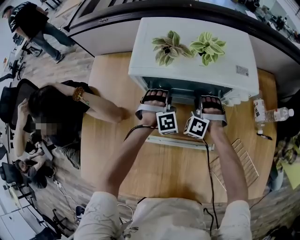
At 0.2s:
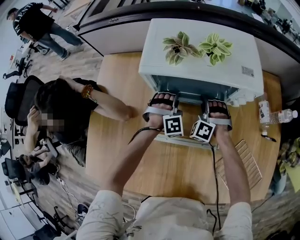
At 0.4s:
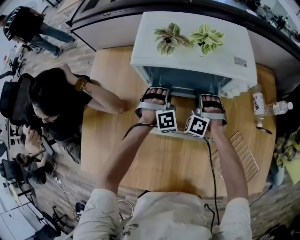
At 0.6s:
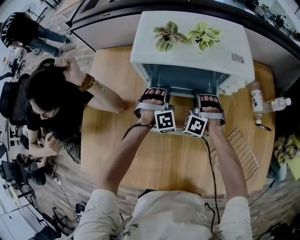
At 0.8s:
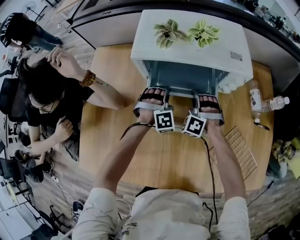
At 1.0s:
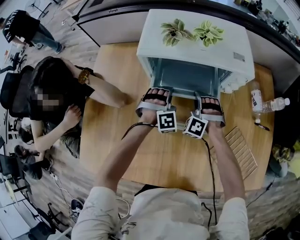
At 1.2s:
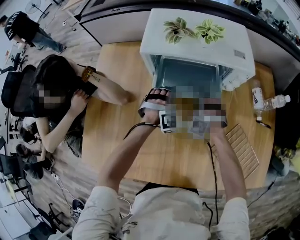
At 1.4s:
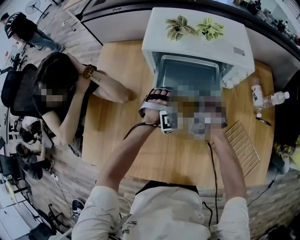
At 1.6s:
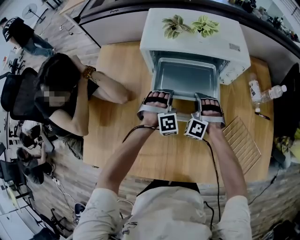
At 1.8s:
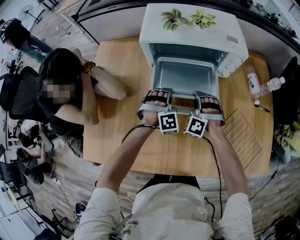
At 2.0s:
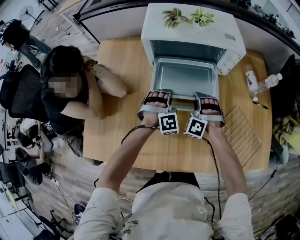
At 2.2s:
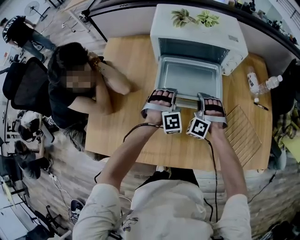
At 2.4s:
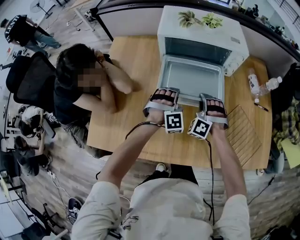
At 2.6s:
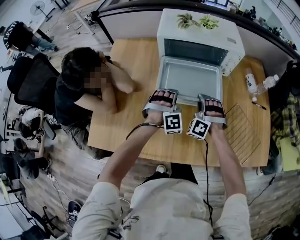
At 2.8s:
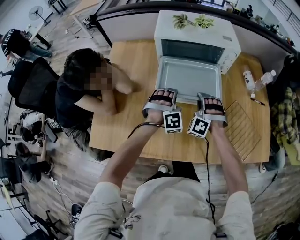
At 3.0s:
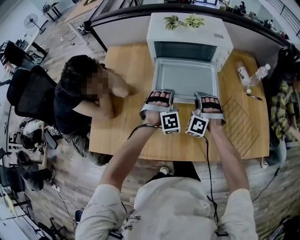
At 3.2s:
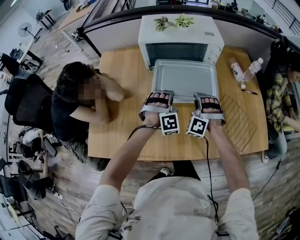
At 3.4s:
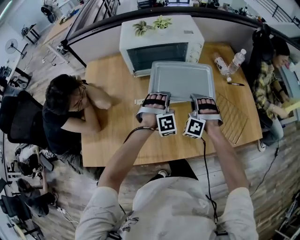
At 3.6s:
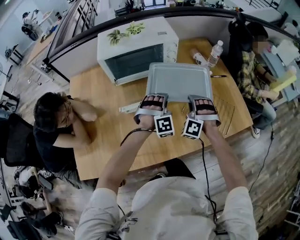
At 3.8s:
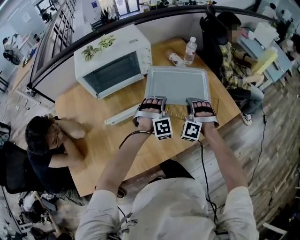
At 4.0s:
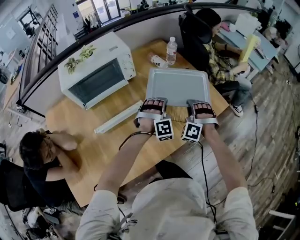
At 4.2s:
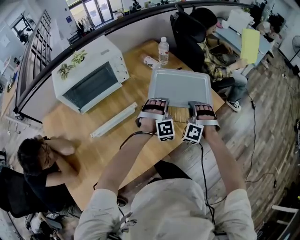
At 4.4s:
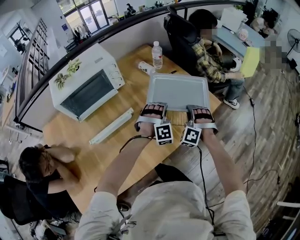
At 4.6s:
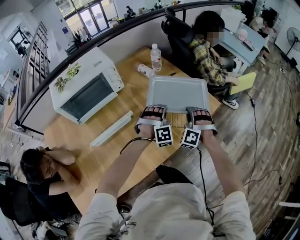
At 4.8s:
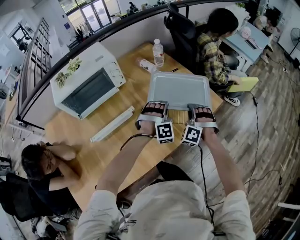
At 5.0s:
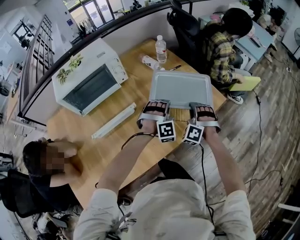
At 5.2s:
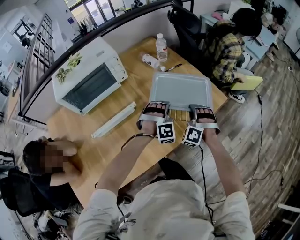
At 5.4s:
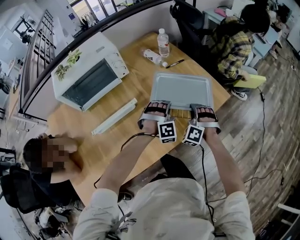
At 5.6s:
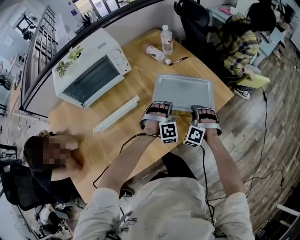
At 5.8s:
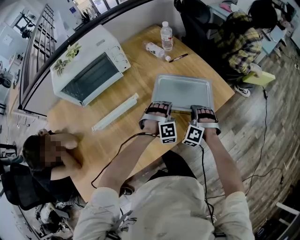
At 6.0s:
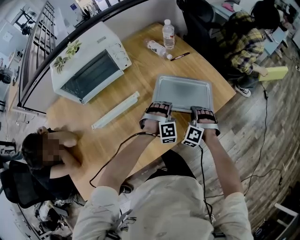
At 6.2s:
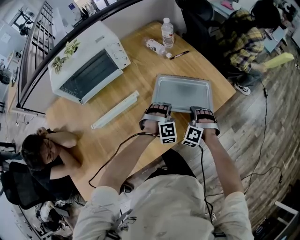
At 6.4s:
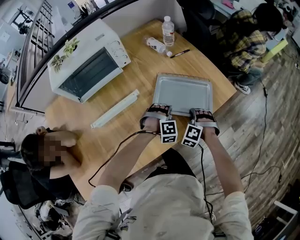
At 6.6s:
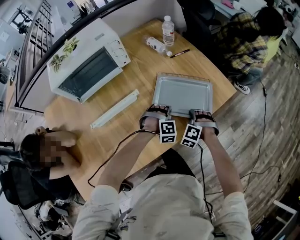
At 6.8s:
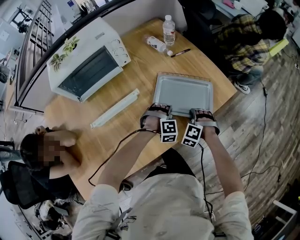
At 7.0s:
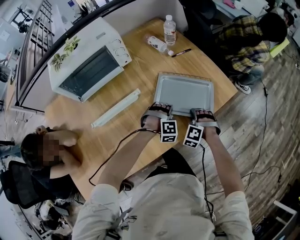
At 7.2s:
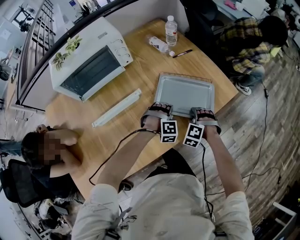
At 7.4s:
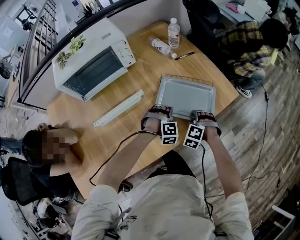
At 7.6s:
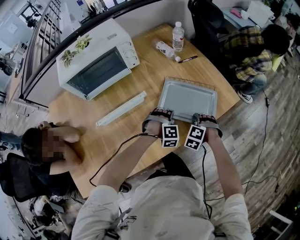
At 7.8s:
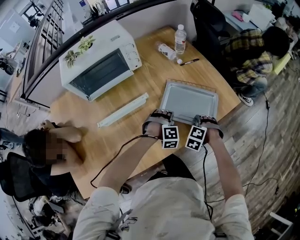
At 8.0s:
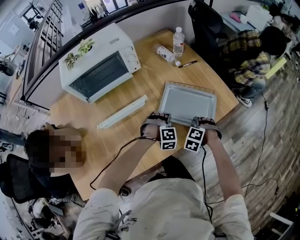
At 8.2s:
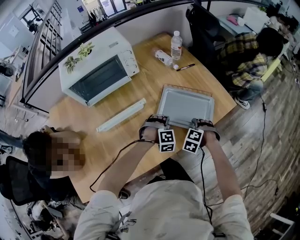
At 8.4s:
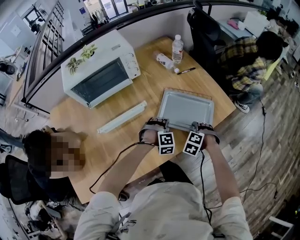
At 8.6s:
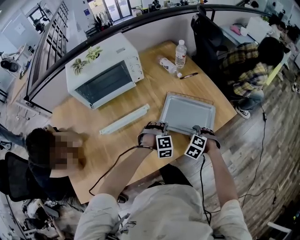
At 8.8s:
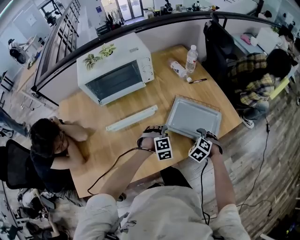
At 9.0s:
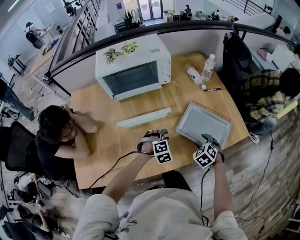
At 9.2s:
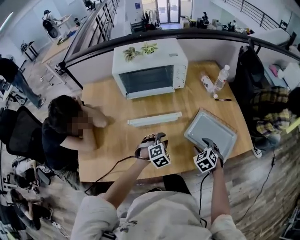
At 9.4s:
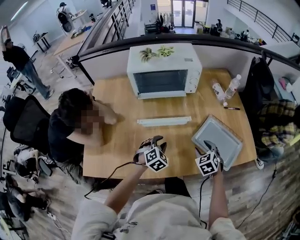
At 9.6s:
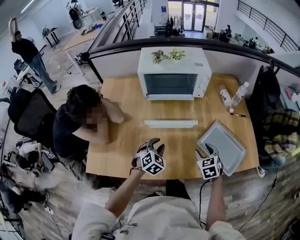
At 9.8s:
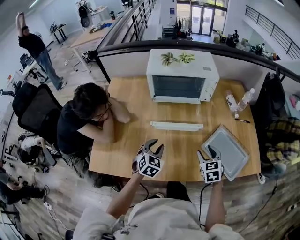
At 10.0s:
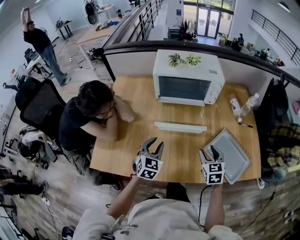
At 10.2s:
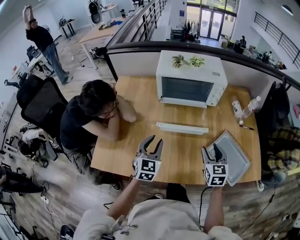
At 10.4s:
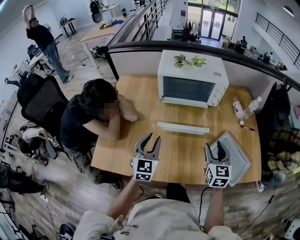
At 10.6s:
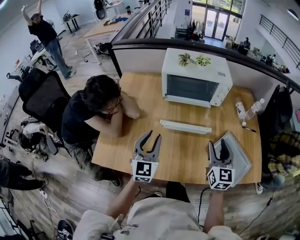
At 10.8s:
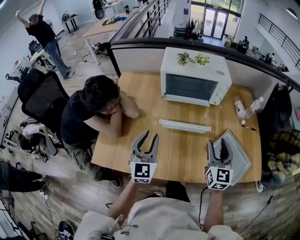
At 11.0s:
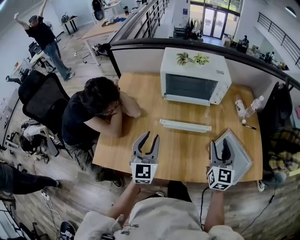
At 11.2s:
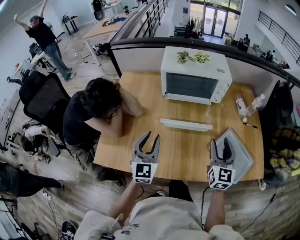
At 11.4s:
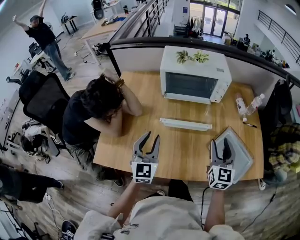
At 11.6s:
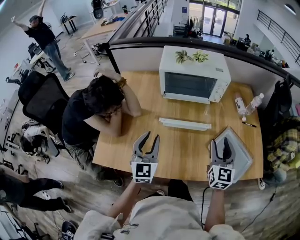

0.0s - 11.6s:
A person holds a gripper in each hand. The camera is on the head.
0.0s - 1.4s: Both grippers move backward, roughly 10 cm.
1.4s - 2.8s: Both grippers move backward and upward, roughly 15 cm.
2.8s - 4.4s: The right gripper changes place by some 40 cm, and rotates roughly 40 degrees. Meanwhile the left gripper shifts by about 40 cm, and turns by about 40 degrees.
4.4s - 5.8s: The grippers both shift downward by roughly 10 cm.
5.8s - 7.2s: The left gripper is displaced downward by approximately 5 cm, while the right gripper ends up roughly 5 cm from where it was, and opens its fingers.
7.2s - 8.8s: The left gripper goes some 10 cm to the left, and turns by some 20 degrees. Meanwhile the right gripper rotates roughly 20 degrees.
8.8s - 10.2s: The left gripper changes place by approximately 35 cm, and rolls counterclockwise, seen from behind, by some 70 degrees, while the right gripper changes place by approximately 25 cm, and tips its fingers upward by some 40 degrees.
10.2s - 11.6s: Both grippers travel together upward, roughly 5 cm.

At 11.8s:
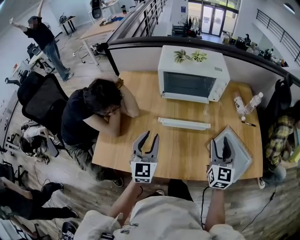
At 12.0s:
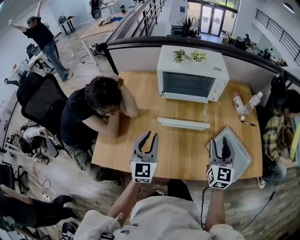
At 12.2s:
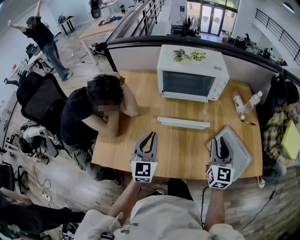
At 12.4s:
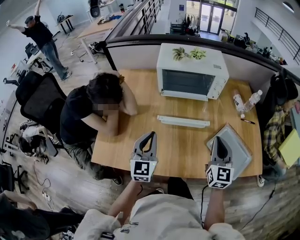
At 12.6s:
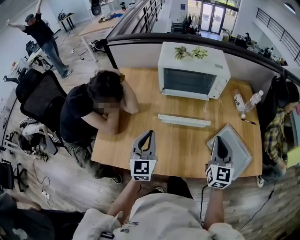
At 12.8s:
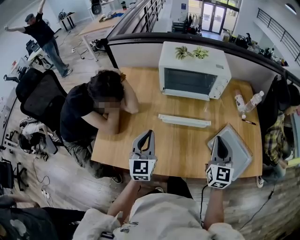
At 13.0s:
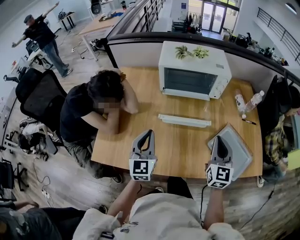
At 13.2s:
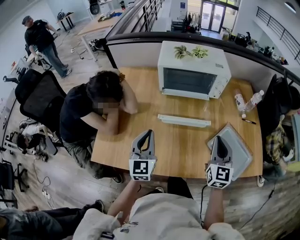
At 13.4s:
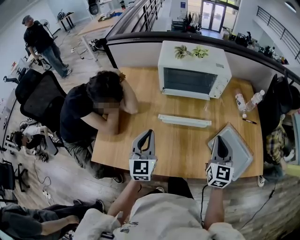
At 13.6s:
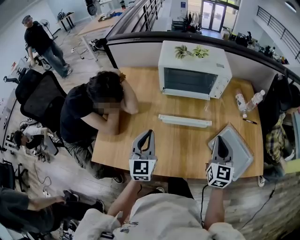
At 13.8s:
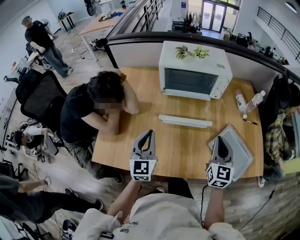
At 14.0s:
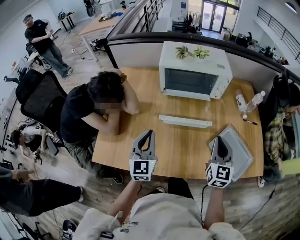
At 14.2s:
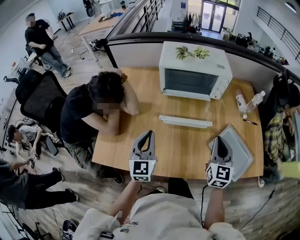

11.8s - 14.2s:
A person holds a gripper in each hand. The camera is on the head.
11.8s - 13.0s: The right gripper closes up. The left gripper closes up.
13.0s - 14.2s: Both grippers stay about where they are.

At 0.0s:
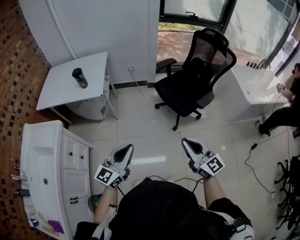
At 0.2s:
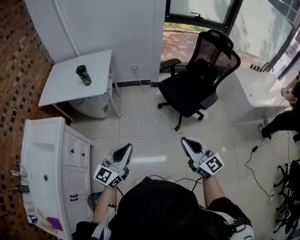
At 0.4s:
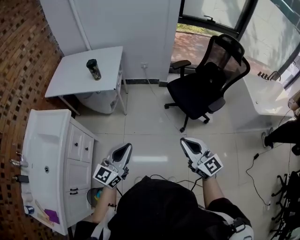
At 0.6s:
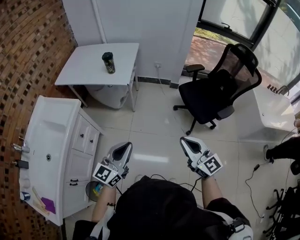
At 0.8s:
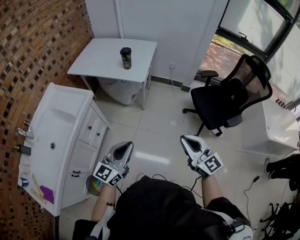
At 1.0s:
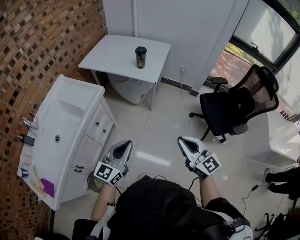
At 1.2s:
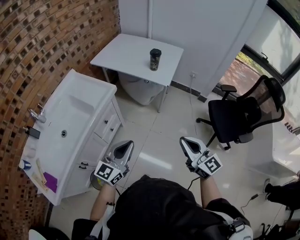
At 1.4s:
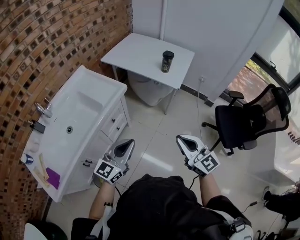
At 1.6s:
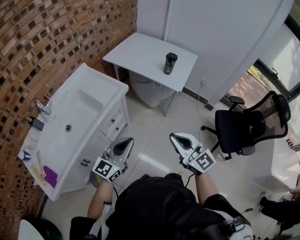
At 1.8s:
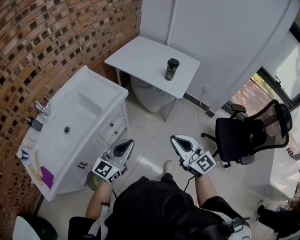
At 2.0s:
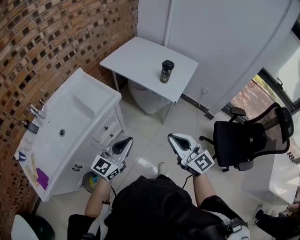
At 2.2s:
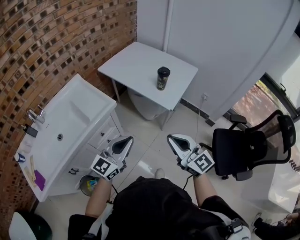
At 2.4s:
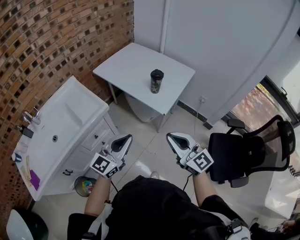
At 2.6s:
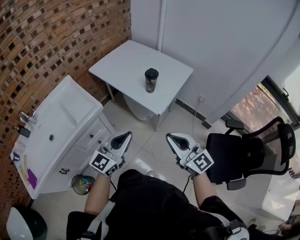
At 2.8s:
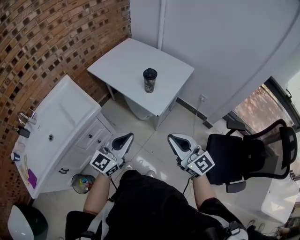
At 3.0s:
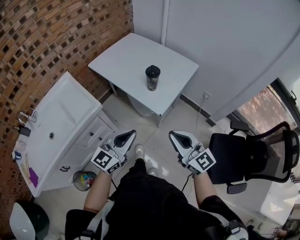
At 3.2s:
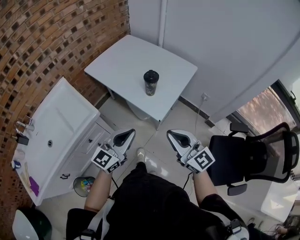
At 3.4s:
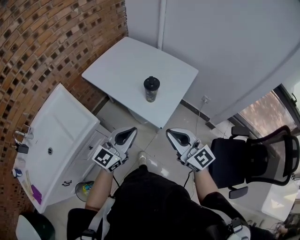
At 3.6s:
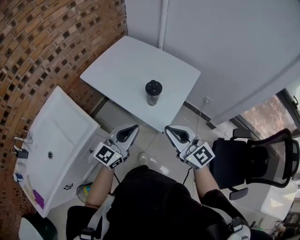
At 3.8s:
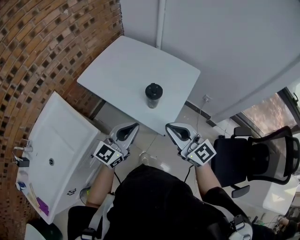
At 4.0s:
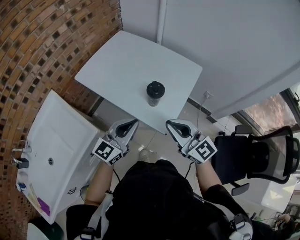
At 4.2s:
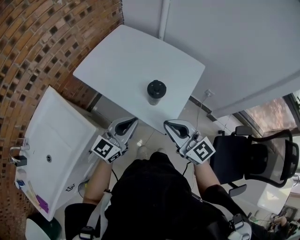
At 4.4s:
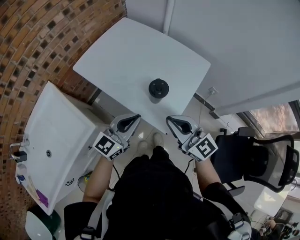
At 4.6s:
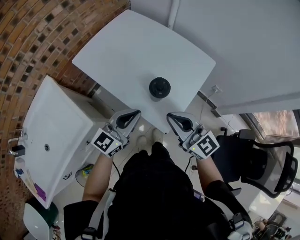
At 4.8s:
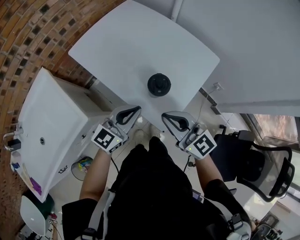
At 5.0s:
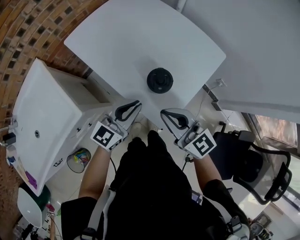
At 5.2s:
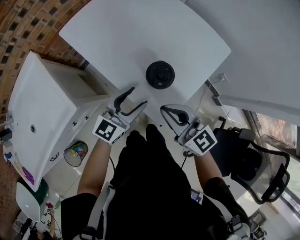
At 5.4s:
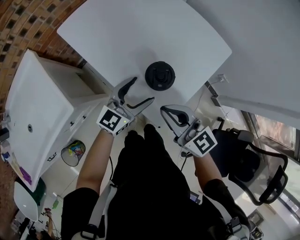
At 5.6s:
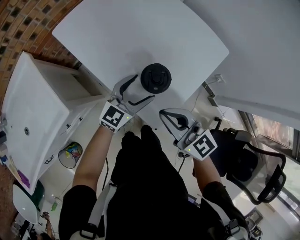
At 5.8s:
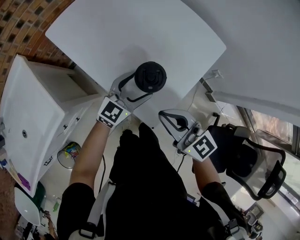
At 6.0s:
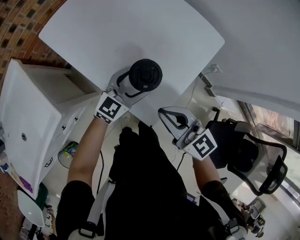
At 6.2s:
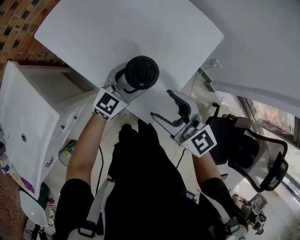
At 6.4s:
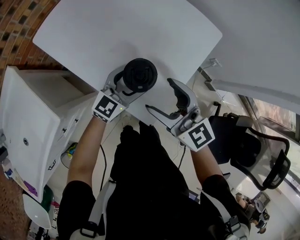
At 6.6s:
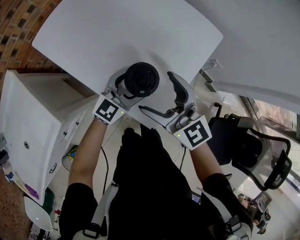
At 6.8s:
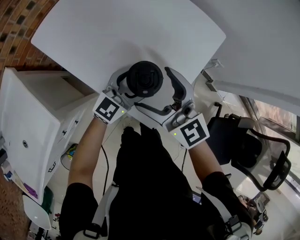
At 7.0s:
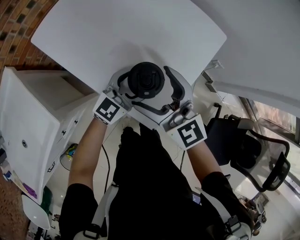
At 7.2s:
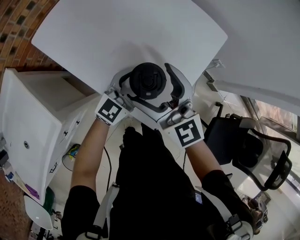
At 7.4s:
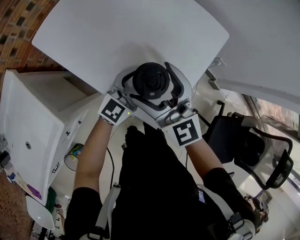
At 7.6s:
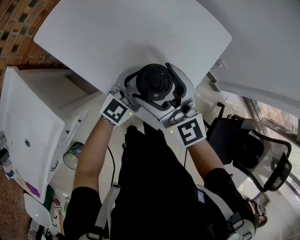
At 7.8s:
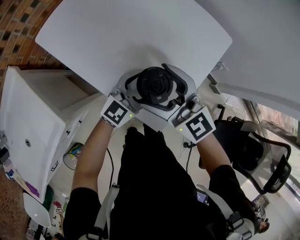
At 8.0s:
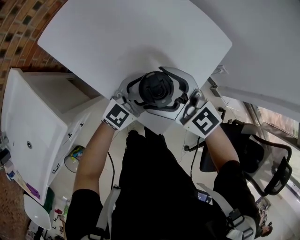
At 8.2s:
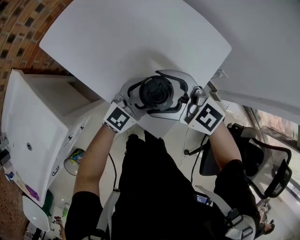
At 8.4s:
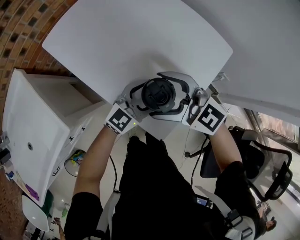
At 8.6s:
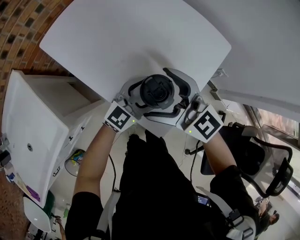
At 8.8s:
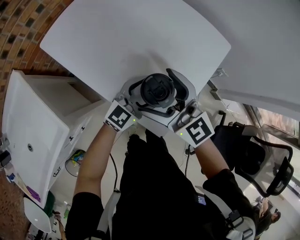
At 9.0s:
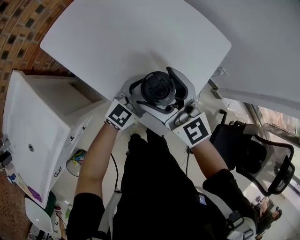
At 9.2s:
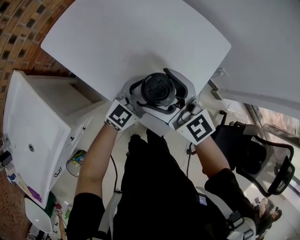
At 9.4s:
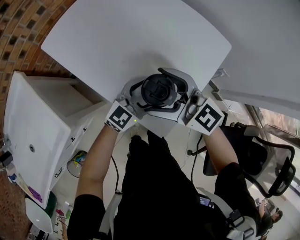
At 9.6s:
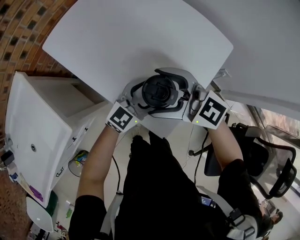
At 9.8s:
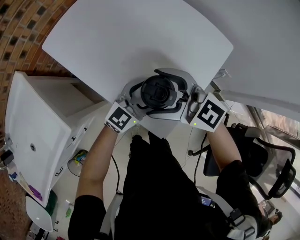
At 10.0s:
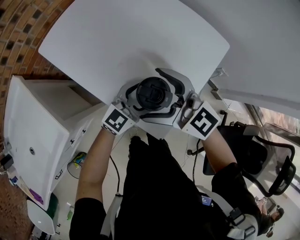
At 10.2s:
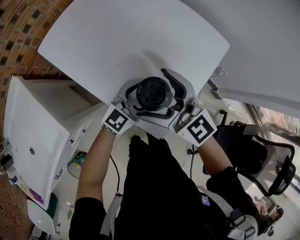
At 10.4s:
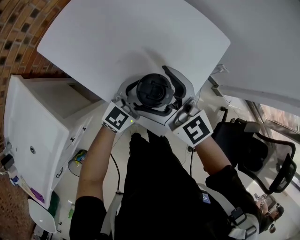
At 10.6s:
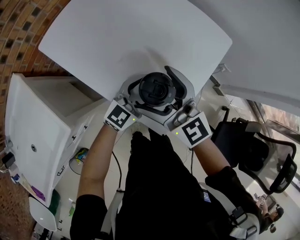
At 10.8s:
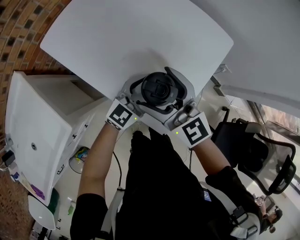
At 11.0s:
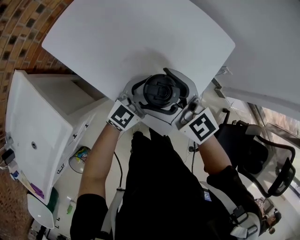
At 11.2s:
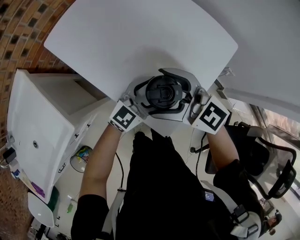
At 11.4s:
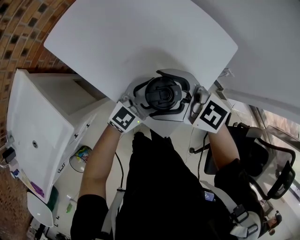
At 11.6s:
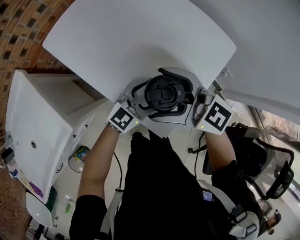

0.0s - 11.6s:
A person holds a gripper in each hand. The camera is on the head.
0.0s - 1.4s: The left gripper ends up approximately 30 cm from where it was, and rotates roughly 30 degrees. The right gripper moves some 35 cm, and rotates approximately 30 degrees.
1.4s - 2.8s: The left gripper shifts roughly 30 cm to the right and forward, while the right gripper is displaced forward and to the right by approximately 30 cm.
2.8s - 4.4s: Both grippers move forward, about 30 cm.
4.4s - 5.8s: The right gripper heads downward, covering approximately 10 cm. Meanwhile the left gripper shifts roughly 20 cm downward, forward and to the right, and opens.
5.8s - 7.2s: The right gripper moves forward, approximately 10 cm, swivels approximately 20 degrees, and opens up.
